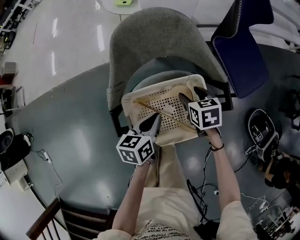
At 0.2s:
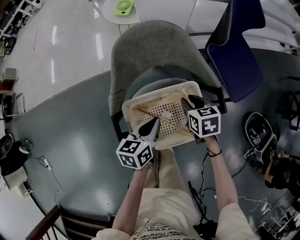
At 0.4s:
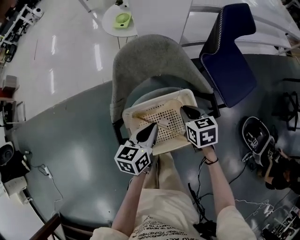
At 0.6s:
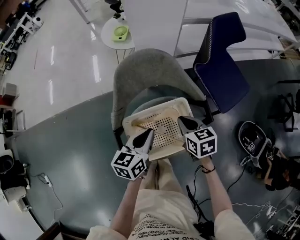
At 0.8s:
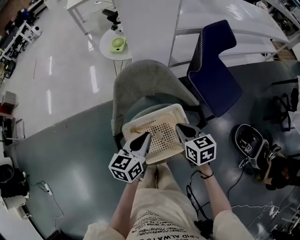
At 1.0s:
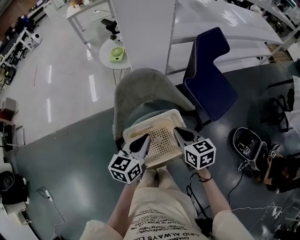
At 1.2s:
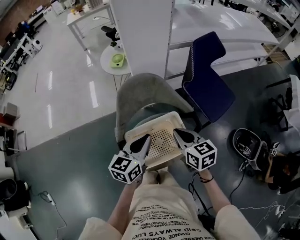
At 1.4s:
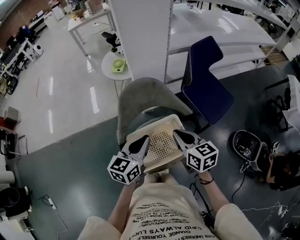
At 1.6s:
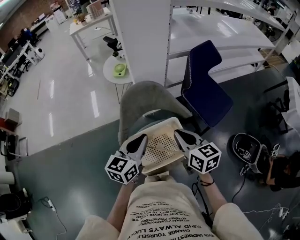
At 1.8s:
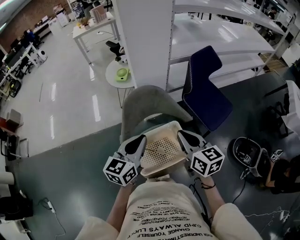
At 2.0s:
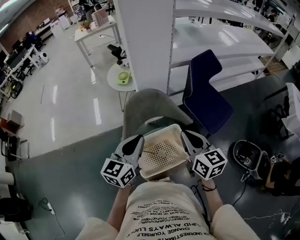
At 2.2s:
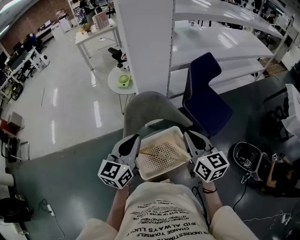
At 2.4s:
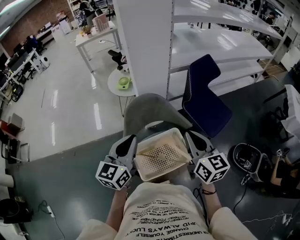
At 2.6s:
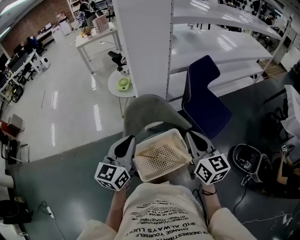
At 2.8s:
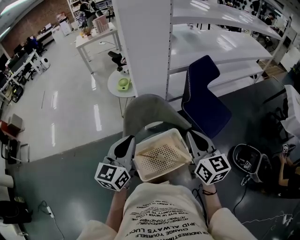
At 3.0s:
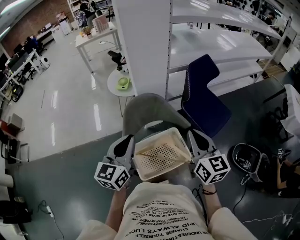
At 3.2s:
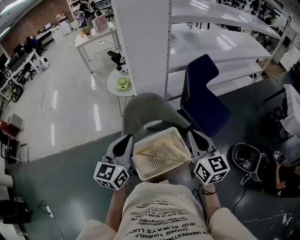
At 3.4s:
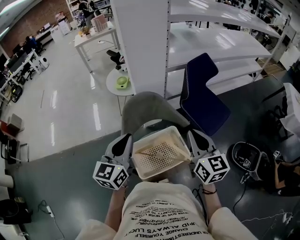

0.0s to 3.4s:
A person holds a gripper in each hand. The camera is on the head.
0.0s to 1.6s: Both grippers move upward, some 25 cm. The right gripper points its fingers about 30 degrees further upward, and closes its fingers, while the left gripper swivels roughly 30 degrees.
1.6s to 3.4s: The right gripper heads upward and to the right, covering roughly 10 cm, and turns by about 20 degrees; the left gripper shifts about 10 cm upward and to the left.

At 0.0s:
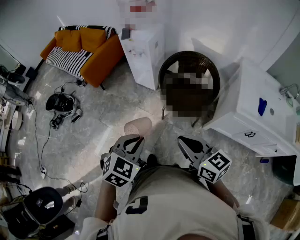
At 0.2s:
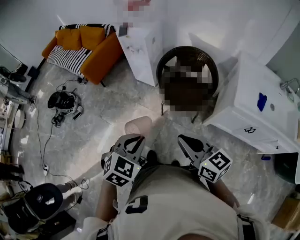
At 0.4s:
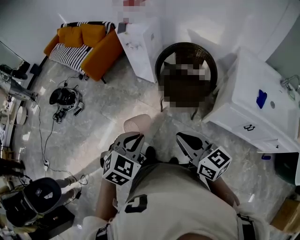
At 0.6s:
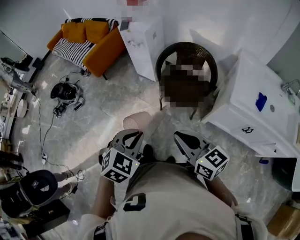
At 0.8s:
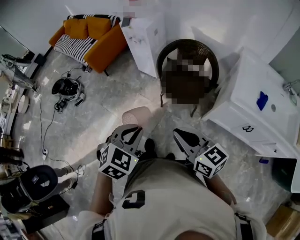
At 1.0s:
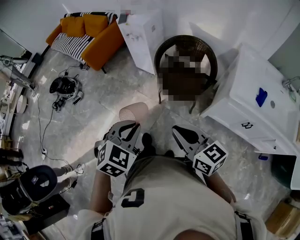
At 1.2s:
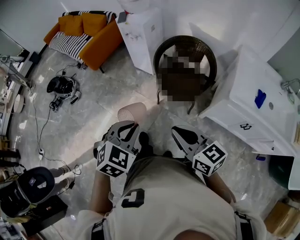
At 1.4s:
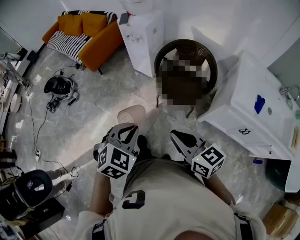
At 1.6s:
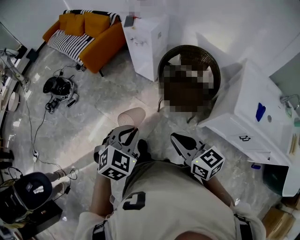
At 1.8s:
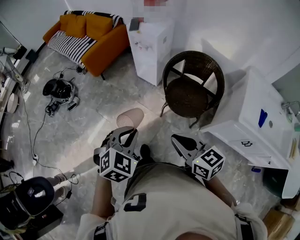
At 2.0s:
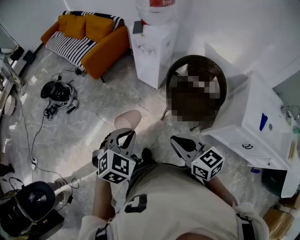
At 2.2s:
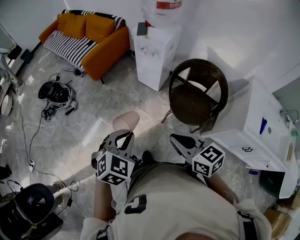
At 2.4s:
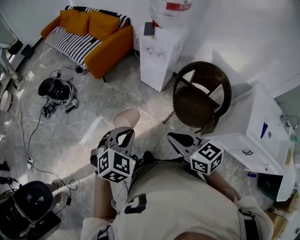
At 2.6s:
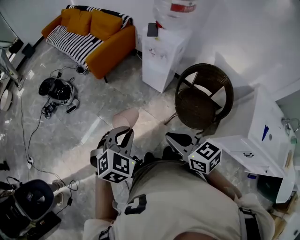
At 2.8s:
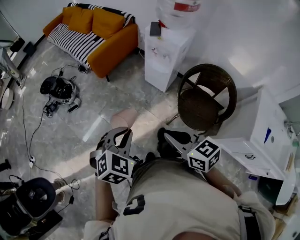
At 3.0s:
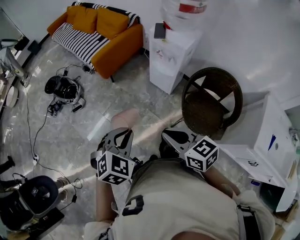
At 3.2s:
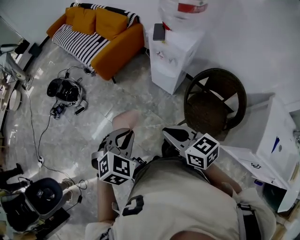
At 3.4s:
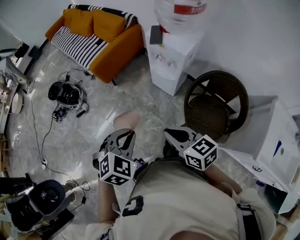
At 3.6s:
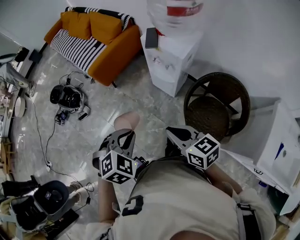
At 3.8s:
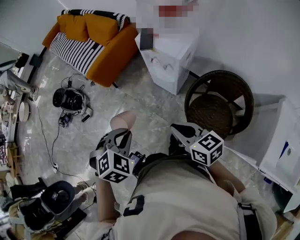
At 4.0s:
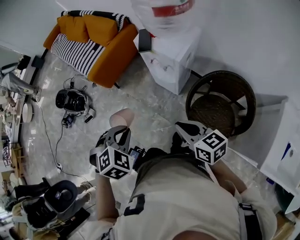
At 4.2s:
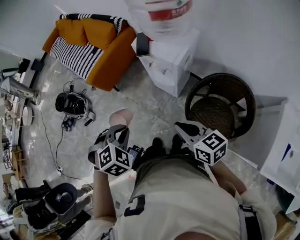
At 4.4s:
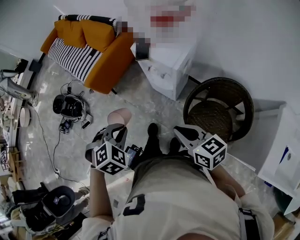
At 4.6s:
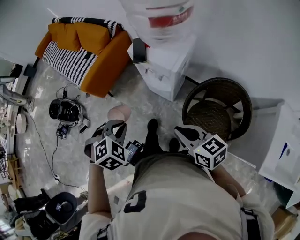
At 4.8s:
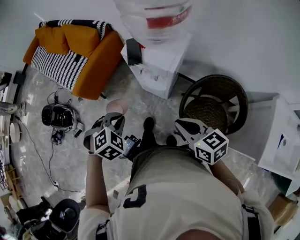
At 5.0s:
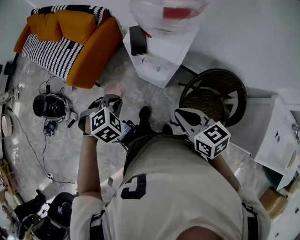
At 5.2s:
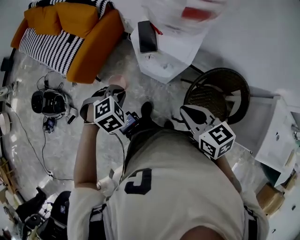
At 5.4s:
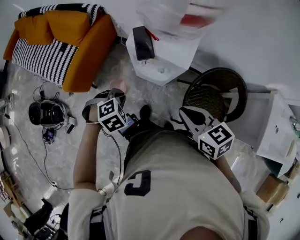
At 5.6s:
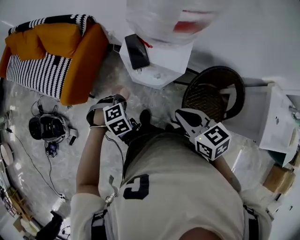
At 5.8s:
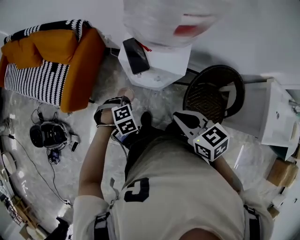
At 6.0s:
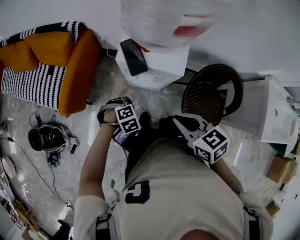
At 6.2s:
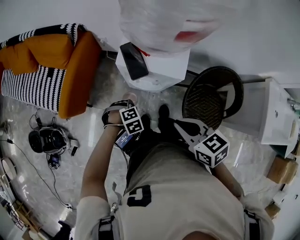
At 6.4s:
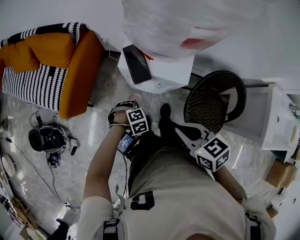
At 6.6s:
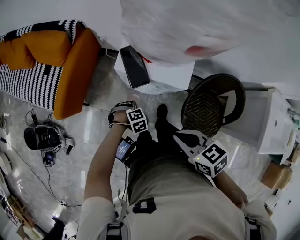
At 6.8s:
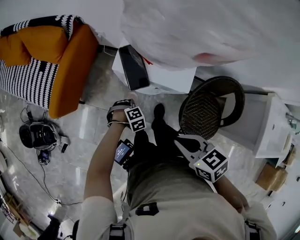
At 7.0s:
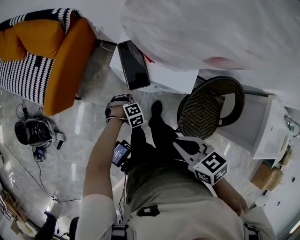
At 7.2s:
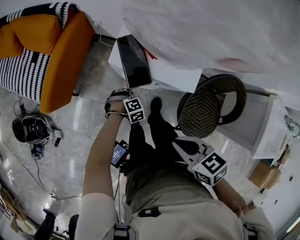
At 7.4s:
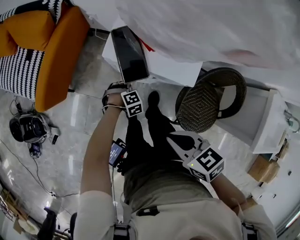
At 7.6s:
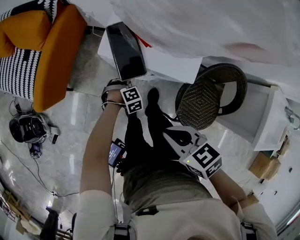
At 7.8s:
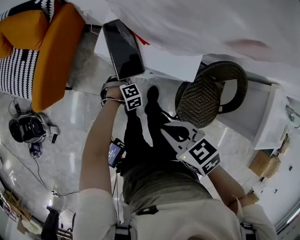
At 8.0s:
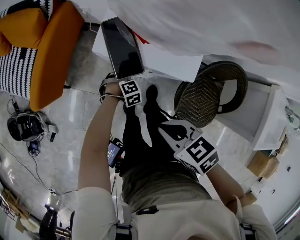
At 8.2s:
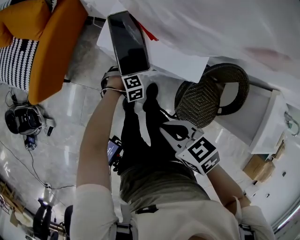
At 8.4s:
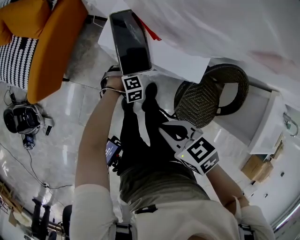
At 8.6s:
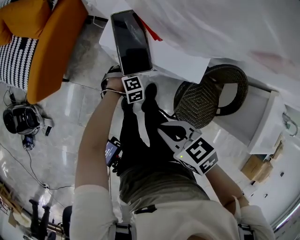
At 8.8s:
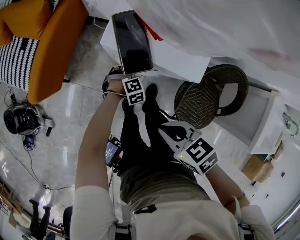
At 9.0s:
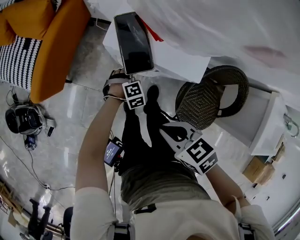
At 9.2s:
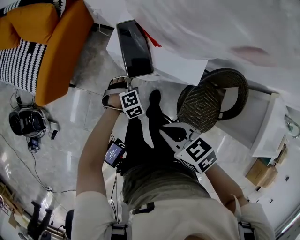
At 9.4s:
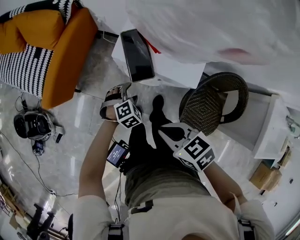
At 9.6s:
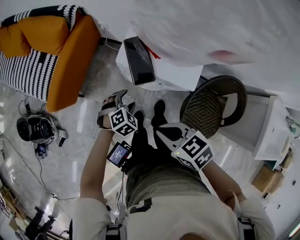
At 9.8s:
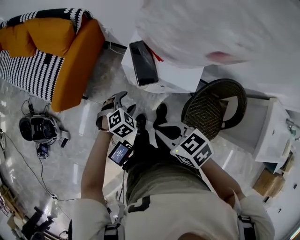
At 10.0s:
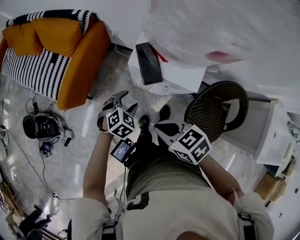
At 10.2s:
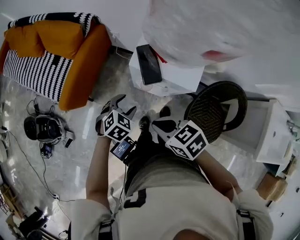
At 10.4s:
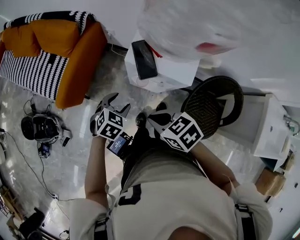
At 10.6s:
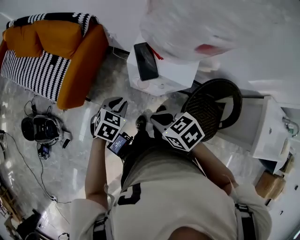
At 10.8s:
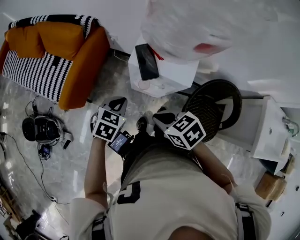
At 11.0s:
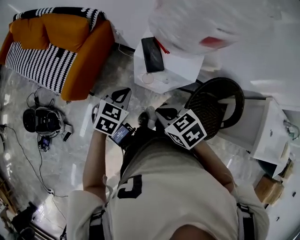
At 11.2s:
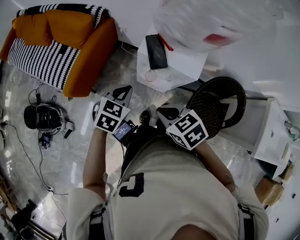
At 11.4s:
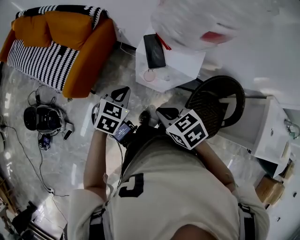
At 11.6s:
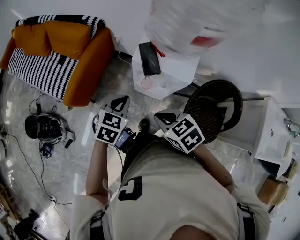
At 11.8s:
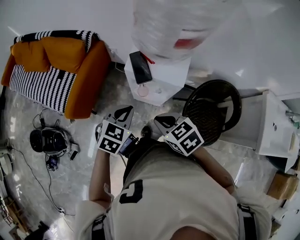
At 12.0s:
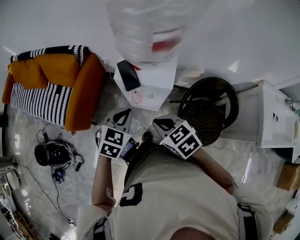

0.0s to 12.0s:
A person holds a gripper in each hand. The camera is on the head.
0.0s to 1.6s: The left gripper goes to the right and returns, about 10 cm each way.
1.6s to 3.0s: The grippers both shift forward and to the left by some 30 cm.
3.0s to 4.4s: The right gripper travels to the right and forward by approximately 25 cm. Meanwhile the left gripper heads forward and to the right, covering roughly 25 cm, and swivels some 20 degrees.
4.4s to 6.0s: The right gripper changes place by roughly 20 cm, and turns by approximately 20 degrees. Meanwhile the left gripper changes place by approximately 30 cm, and swivels some 40 degrees.
6.0s to 7.6s: The right gripper is displaced downward by approximately 10 cm. The left gripper goes about 20 cm downward.
7.6s to 9.0s: The left gripper opens up.
9.0s to 10.4s: The right gripper moves upward, to the left and forward, some 10 cm, while the left gripper heads upward and to the left, covering about 30 cm, and swivels roughly 40 degrees.
10.4s to 12.0s: The left gripper travels upward and to the right by approximately 15 cm, and closes; the right gripper is displaced upward and to the right by some 10 cm.

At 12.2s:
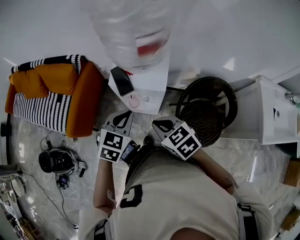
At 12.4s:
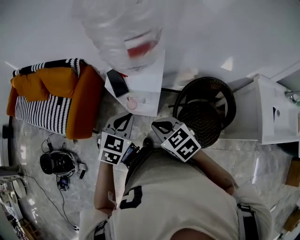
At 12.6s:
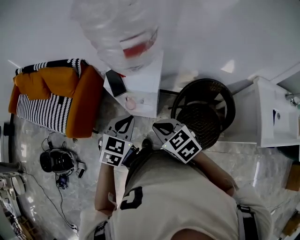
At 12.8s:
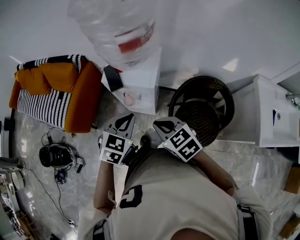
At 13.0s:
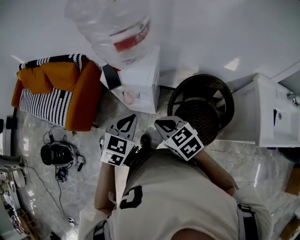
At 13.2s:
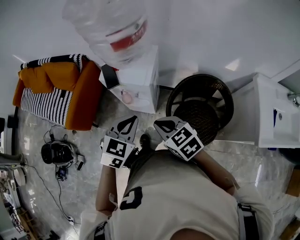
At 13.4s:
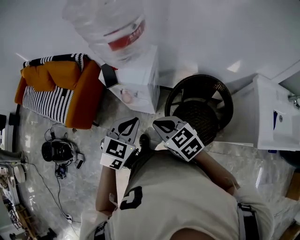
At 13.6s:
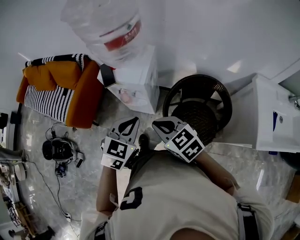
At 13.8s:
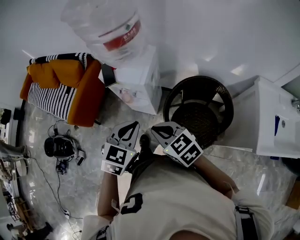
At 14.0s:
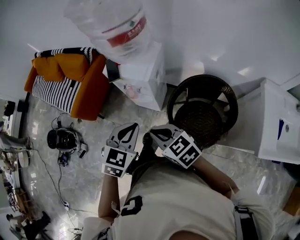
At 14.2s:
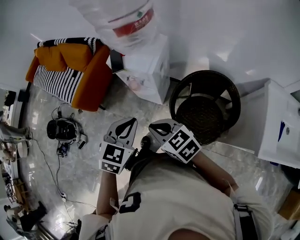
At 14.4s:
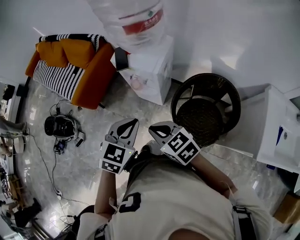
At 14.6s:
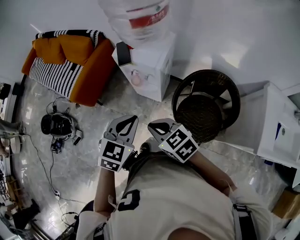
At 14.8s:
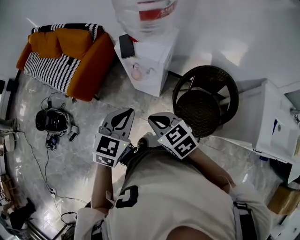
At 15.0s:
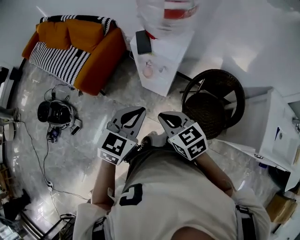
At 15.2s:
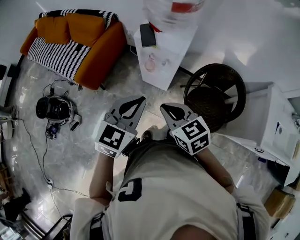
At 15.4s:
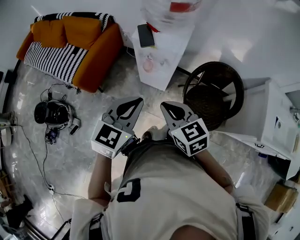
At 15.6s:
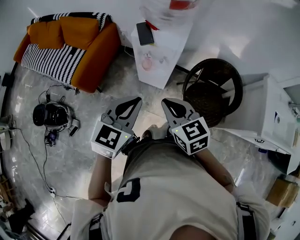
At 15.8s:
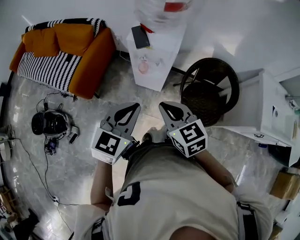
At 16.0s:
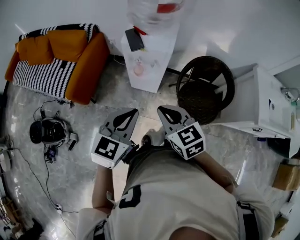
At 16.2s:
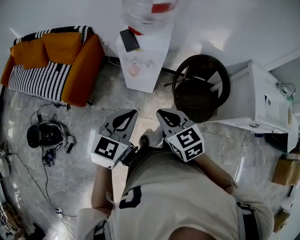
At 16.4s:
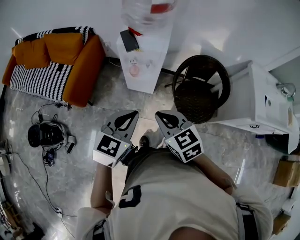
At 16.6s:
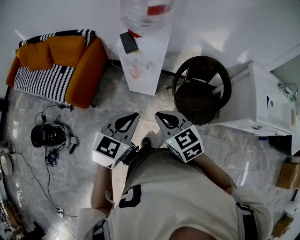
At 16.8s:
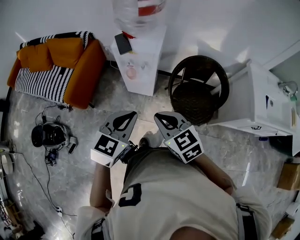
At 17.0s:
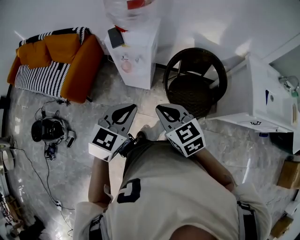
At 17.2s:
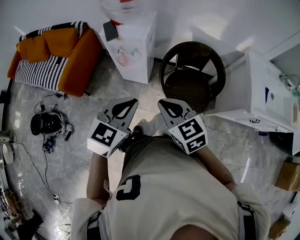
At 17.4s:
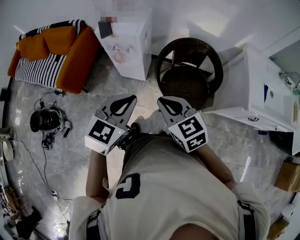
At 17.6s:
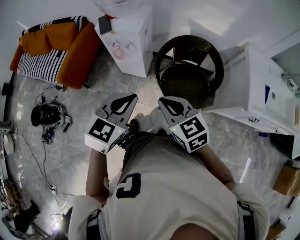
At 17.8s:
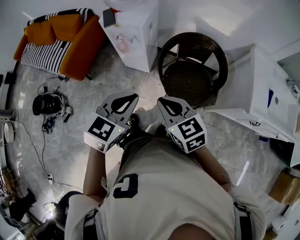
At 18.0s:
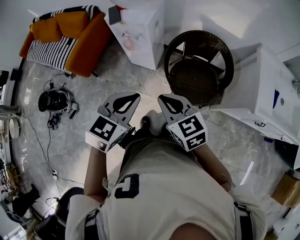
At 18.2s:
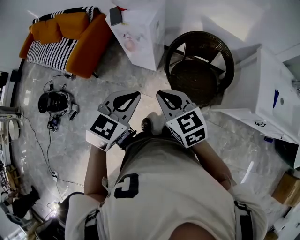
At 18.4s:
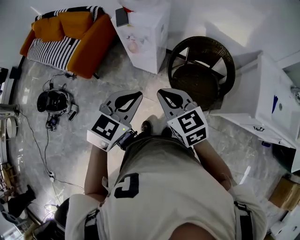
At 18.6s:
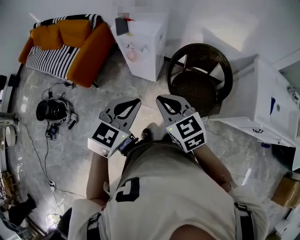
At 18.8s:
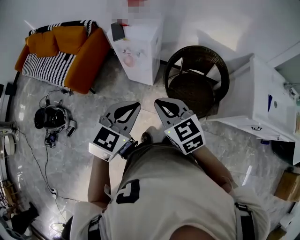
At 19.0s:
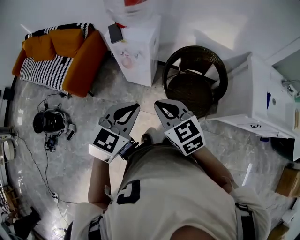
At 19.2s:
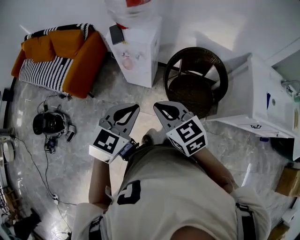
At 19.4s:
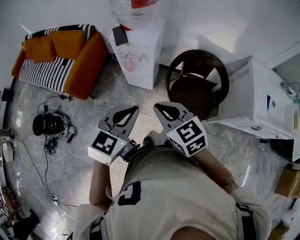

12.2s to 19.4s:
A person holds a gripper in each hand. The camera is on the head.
12.2s to 13.6s: The grippers both shift to the right and backward by roughly 20 cm.
13.6s to 15.0s: The grippers both shift to the left by roughly 15 cm.
15.0s to 16.6s: The two grippers go approximately 5 cm backward.
16.6s to 18.0s: Both grippers travel together to the right, about 20 cm.
18.0s to 19.4s: The two grippers go roughly 10 cm to the left.

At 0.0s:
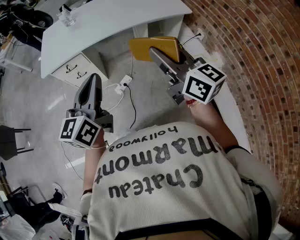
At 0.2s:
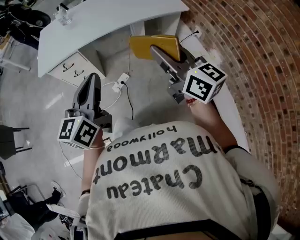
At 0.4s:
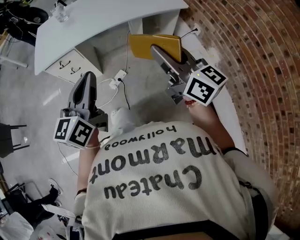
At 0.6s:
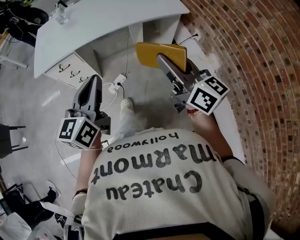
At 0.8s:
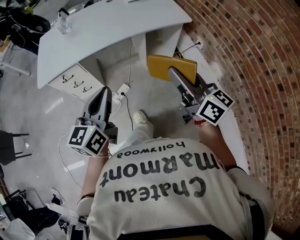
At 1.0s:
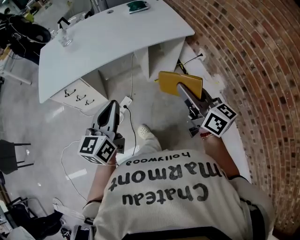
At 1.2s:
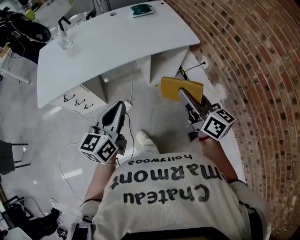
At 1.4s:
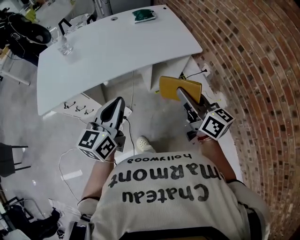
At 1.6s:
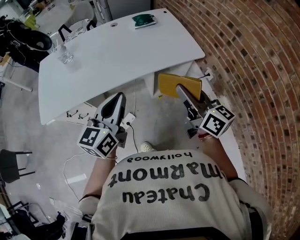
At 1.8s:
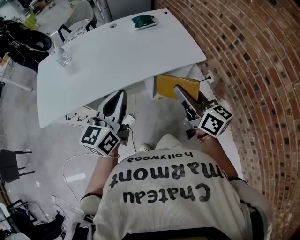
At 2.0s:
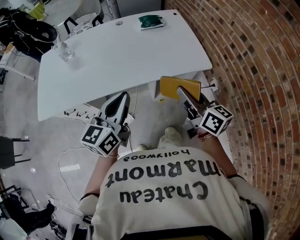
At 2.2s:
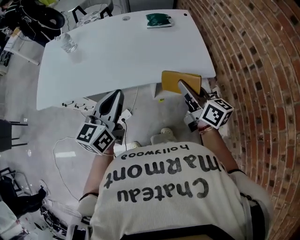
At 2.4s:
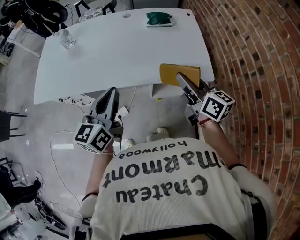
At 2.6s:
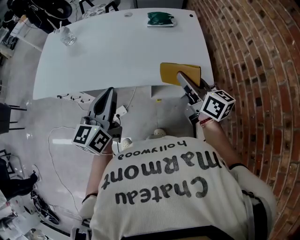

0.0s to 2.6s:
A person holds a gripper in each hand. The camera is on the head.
0.0s to 1.2s: The grippers both shift forward, to the right and downward by about 20 cm.
1.2s to 2.6s: The right gripper goes about 30 cm forward, and rotates about 20 degrees; the left gripper travels forward and to the right by roughly 25 cm, and swivels roughly 20 degrees.
